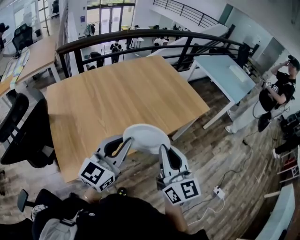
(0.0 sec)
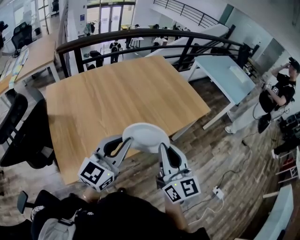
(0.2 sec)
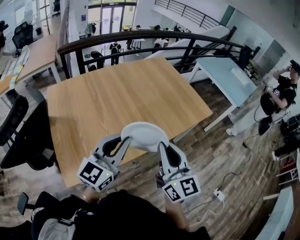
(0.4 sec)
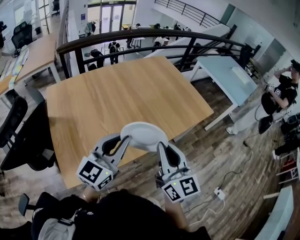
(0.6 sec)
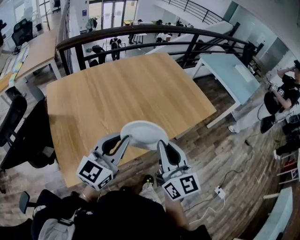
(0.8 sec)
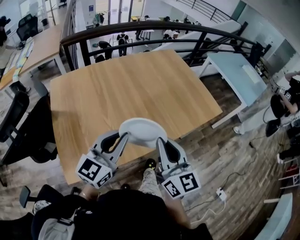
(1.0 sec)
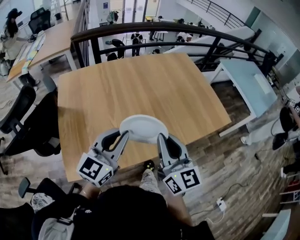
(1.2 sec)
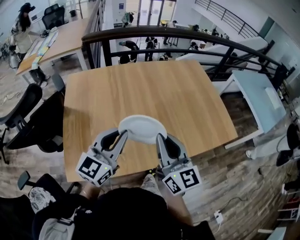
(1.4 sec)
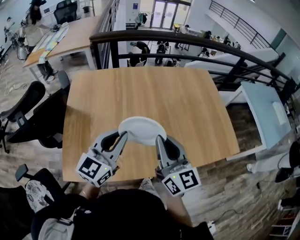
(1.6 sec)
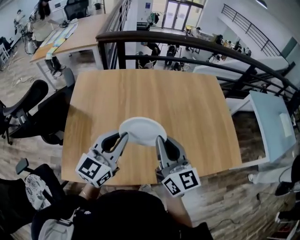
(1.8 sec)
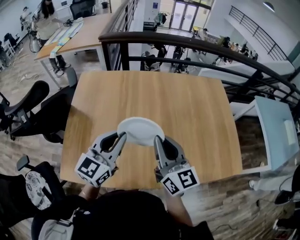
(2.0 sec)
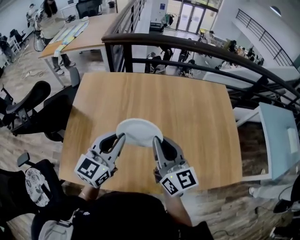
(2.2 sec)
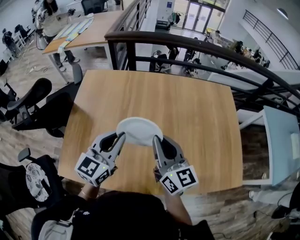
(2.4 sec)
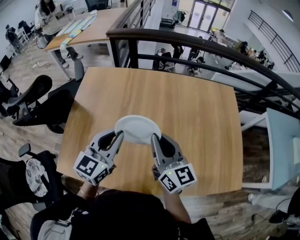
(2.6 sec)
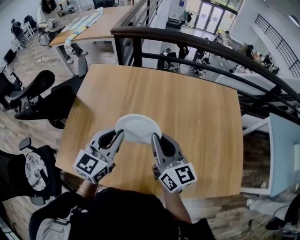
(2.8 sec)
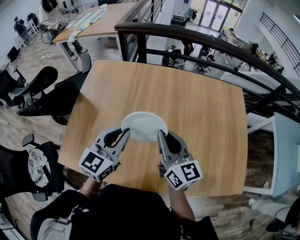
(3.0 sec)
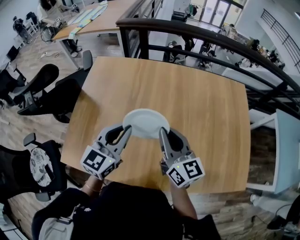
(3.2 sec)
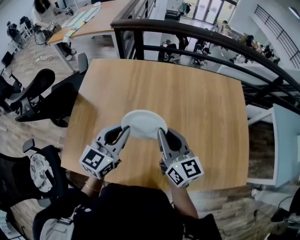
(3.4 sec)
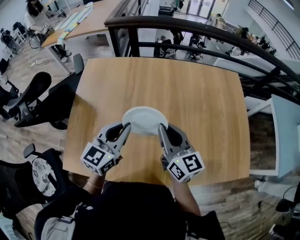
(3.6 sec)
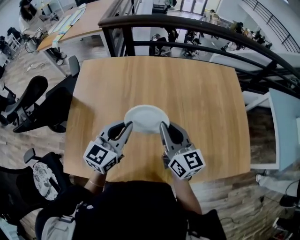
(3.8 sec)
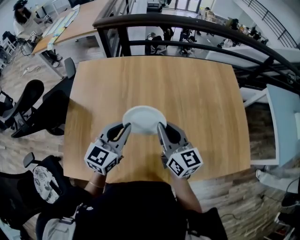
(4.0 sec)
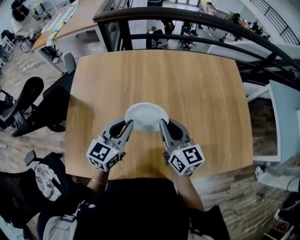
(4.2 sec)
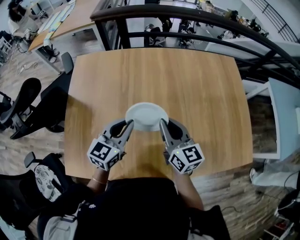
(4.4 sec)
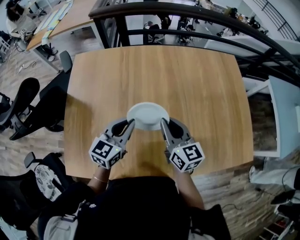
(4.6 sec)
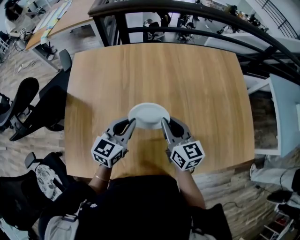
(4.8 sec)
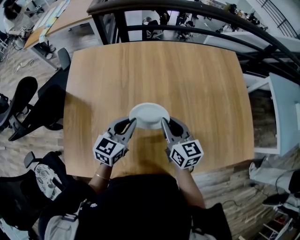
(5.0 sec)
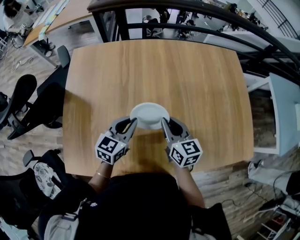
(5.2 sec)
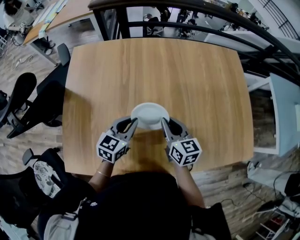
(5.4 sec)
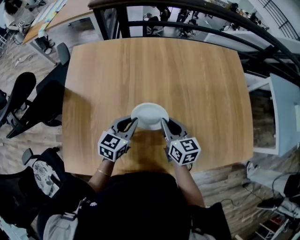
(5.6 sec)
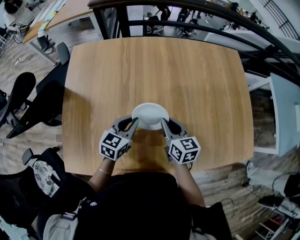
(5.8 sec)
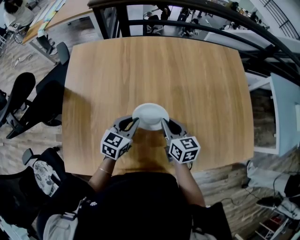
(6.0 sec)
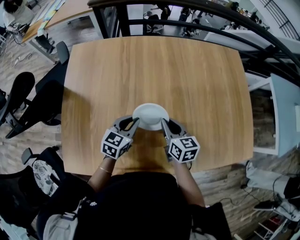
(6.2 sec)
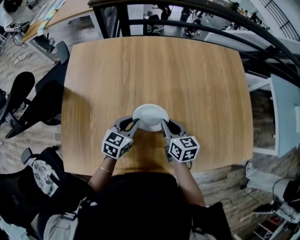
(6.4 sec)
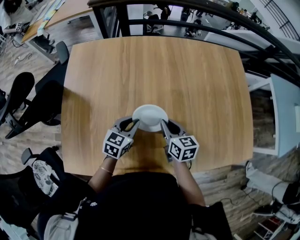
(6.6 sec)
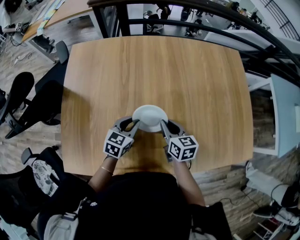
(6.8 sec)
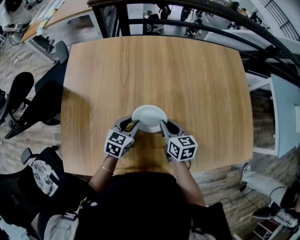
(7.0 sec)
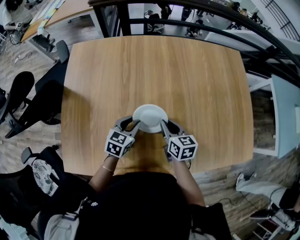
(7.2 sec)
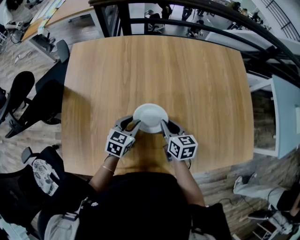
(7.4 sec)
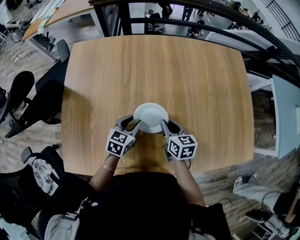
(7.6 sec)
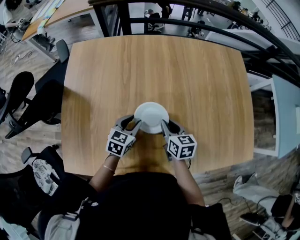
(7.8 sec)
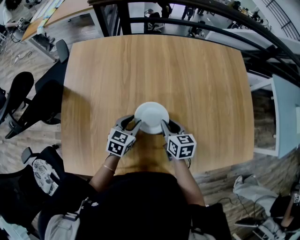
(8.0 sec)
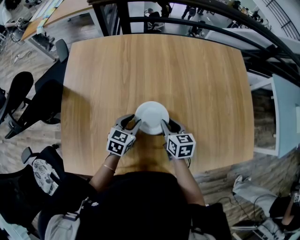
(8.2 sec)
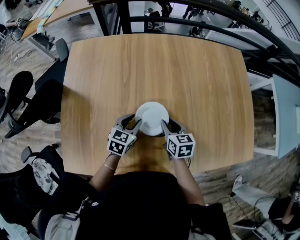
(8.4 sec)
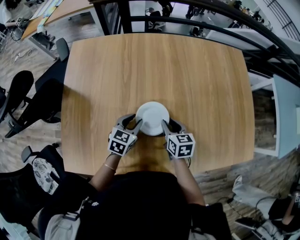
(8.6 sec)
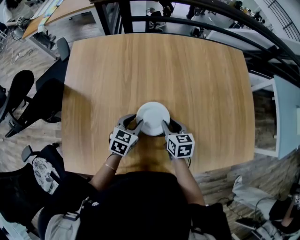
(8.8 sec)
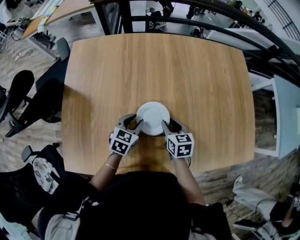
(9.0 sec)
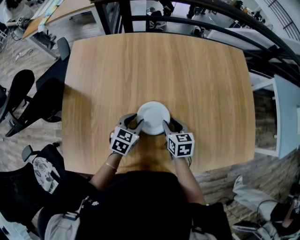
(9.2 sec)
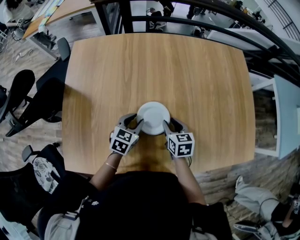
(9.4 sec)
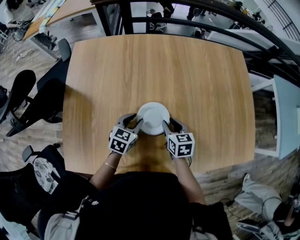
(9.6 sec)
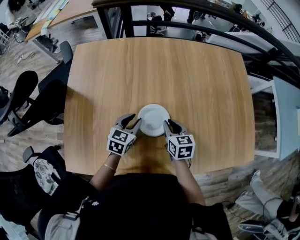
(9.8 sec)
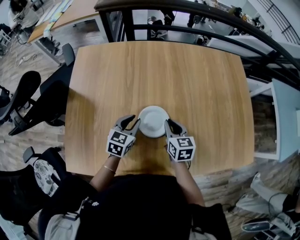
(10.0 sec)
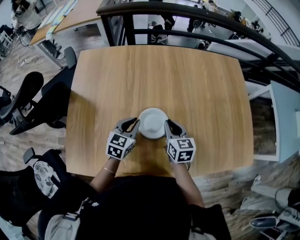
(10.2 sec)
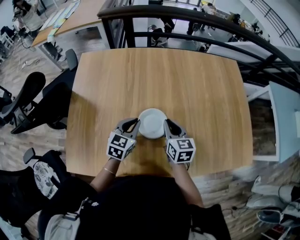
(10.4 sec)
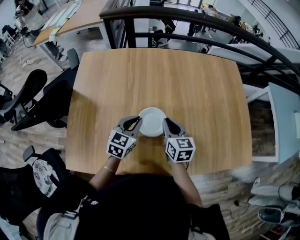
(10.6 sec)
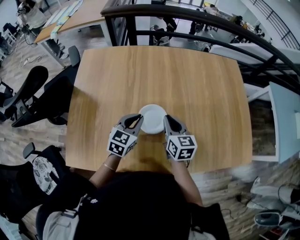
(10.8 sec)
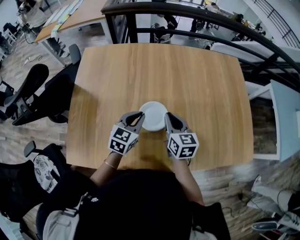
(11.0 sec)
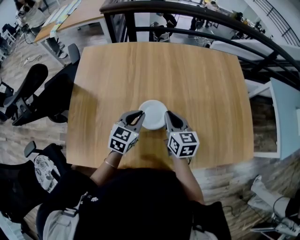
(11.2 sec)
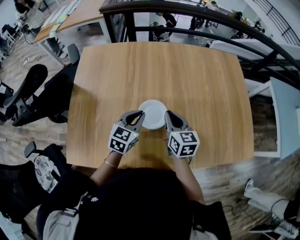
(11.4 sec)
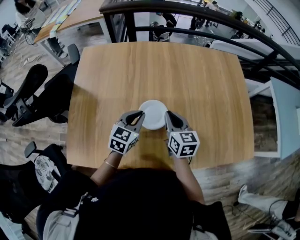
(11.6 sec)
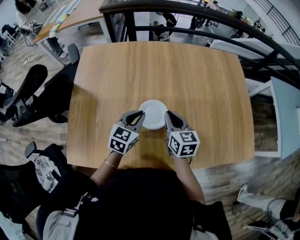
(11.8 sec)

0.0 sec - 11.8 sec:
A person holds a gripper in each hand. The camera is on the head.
0.0 sec - 1.4 sec: The two grippers go about 20 cm forward and to the left. The right gripper changes its angle by some 20 degrees.
1.4 sec - 3.0 sec: Both grippers move forward, about 20 cm. The right gripper rotates approximately 30 degrees, while the left gripper turns by about 20 degrees.
3.0 sec - 4.4 sec: The grippers both shift downward by roughly 10 cm.
4.4 sec - 6.0 sec: Both grippers move downward, about 10 cm.
6.0 sec - 7.4 sec: The grippers make only small movements.
7.4 sec - 8.8 sec: The grippers move only a little.
8.8 sec - 10.4 sec: The two grippers go roughly 10 cm upward. The left gripper closes up.
10.4 sec - 11.8 sec: The grippers move only a little.

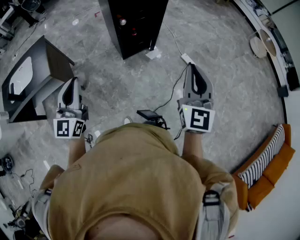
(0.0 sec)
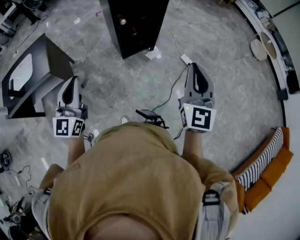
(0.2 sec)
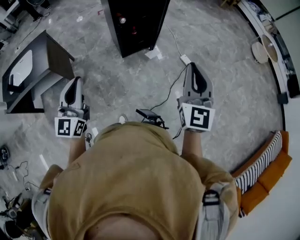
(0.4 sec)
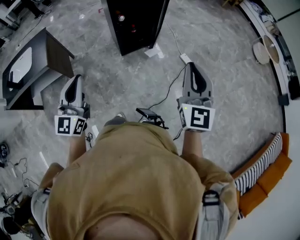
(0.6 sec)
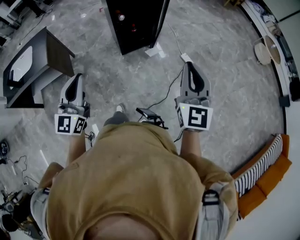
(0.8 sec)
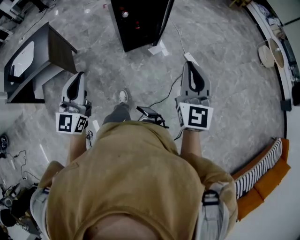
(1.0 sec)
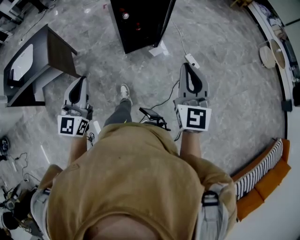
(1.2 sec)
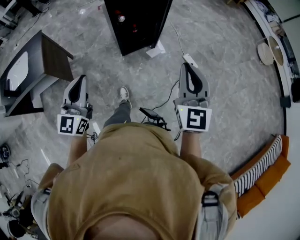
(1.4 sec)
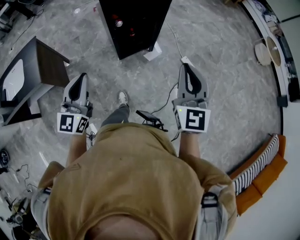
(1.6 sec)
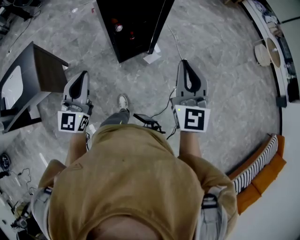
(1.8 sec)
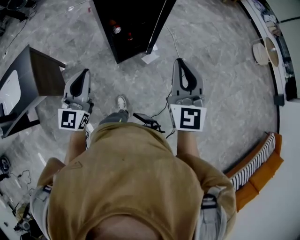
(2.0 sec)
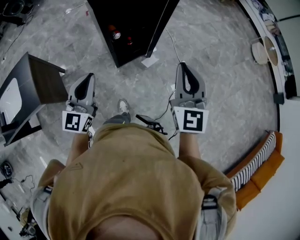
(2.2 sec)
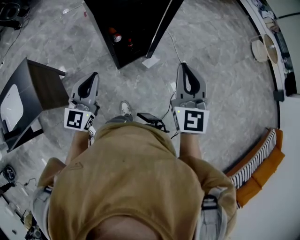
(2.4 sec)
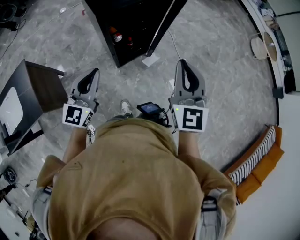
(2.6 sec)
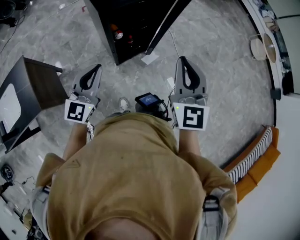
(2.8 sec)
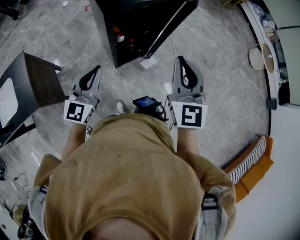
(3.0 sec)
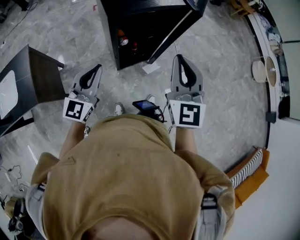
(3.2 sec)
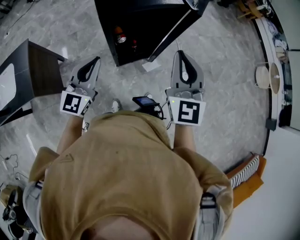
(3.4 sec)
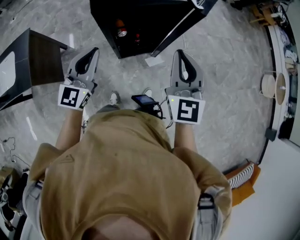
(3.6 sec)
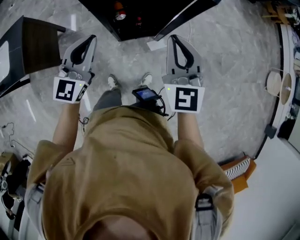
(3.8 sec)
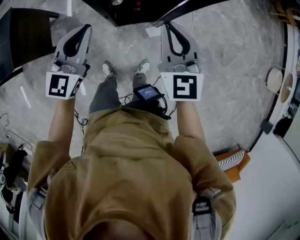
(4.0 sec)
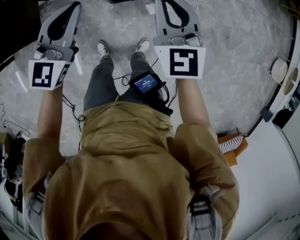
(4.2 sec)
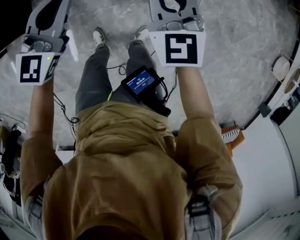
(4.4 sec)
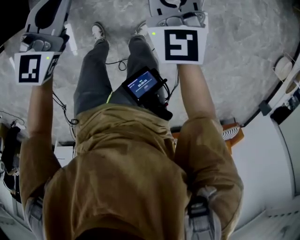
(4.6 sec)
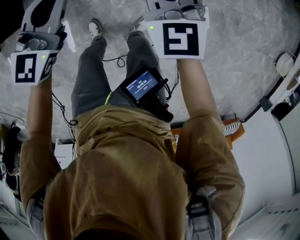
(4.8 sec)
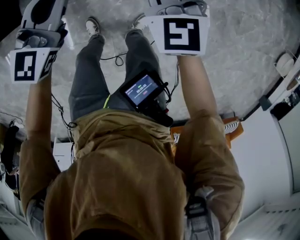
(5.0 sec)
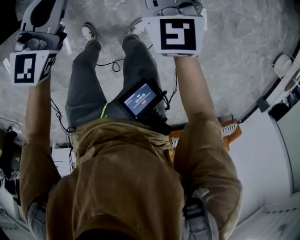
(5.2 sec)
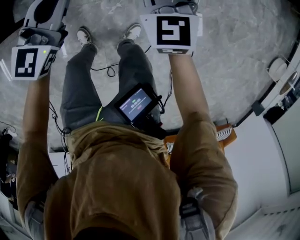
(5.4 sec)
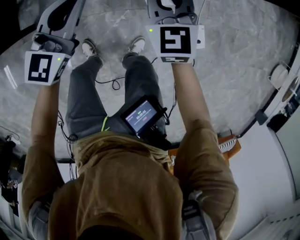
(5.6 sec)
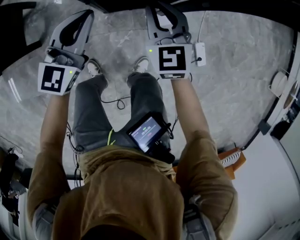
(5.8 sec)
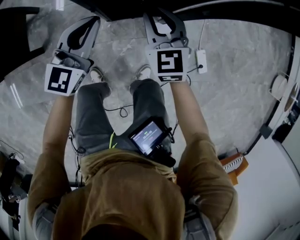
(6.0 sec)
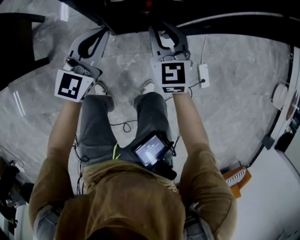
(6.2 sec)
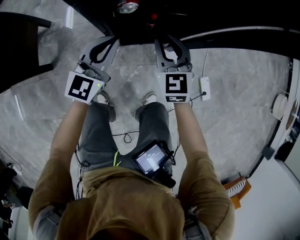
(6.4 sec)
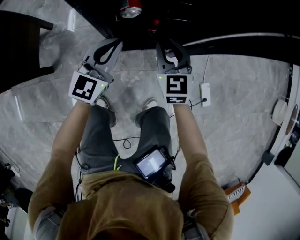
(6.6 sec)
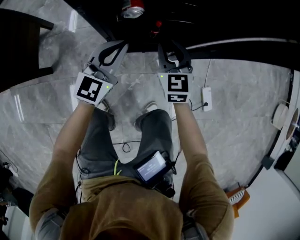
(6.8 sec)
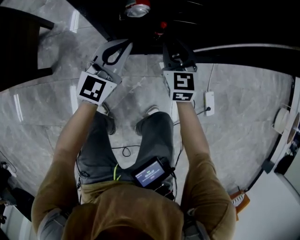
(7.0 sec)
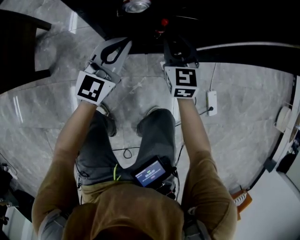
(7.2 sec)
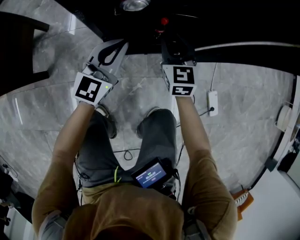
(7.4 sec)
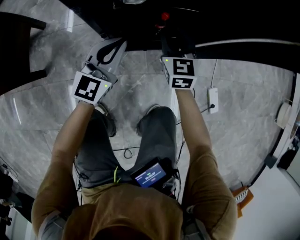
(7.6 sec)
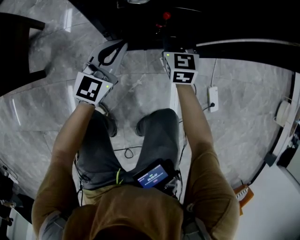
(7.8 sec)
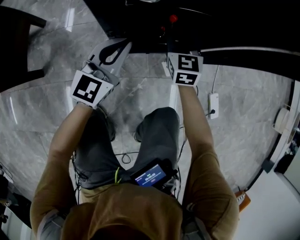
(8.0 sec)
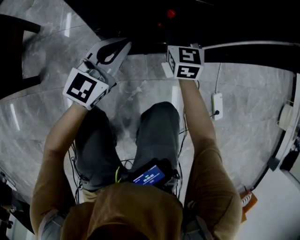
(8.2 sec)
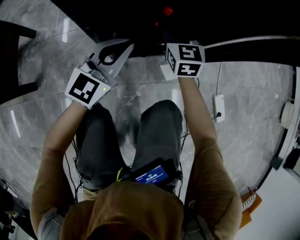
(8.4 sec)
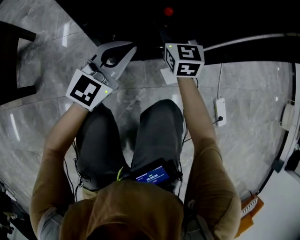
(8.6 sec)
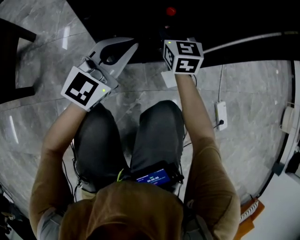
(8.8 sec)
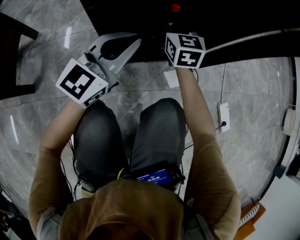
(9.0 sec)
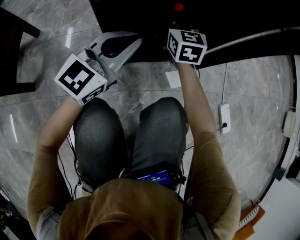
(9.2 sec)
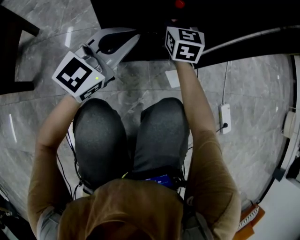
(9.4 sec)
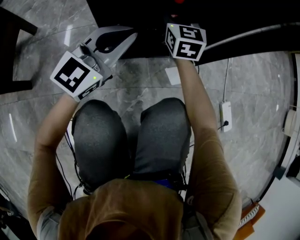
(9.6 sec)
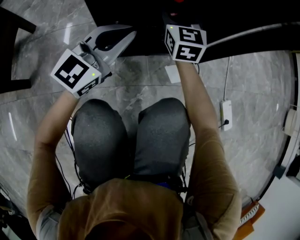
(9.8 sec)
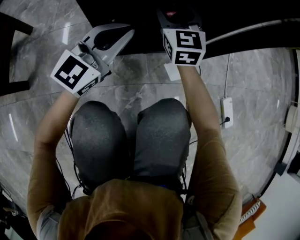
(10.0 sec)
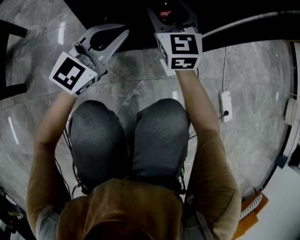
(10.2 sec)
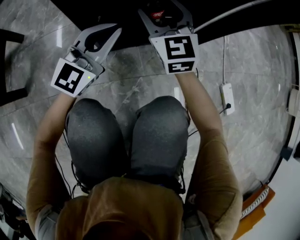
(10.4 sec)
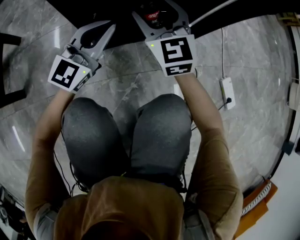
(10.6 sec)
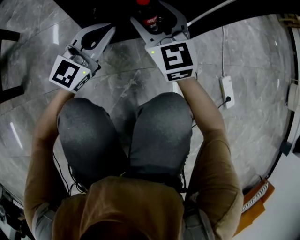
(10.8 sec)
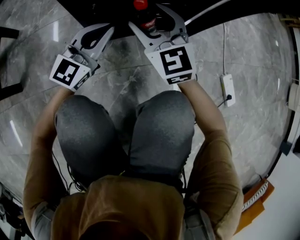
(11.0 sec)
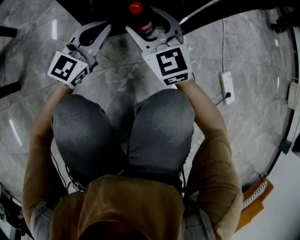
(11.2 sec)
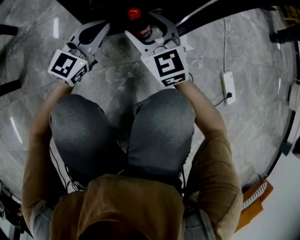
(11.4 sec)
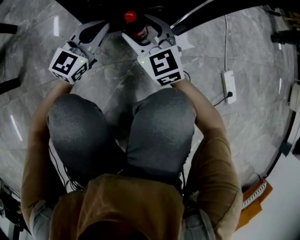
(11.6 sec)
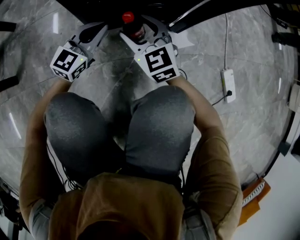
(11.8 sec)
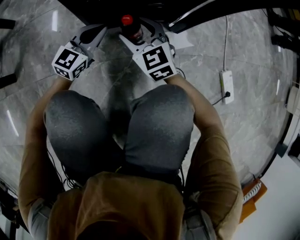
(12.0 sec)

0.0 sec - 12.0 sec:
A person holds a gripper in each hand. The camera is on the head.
0.0 sec - 1.6 sec: The left gripper moves forward and to the right, about 15 cm. The right gripper shifts about 15 cm forward.
1.6 sec - 3.0 sec: The right gripper shifts roughly 25 cm forward and to the left; the left gripper moves forward, approximately 25 cm.
3.0 sec - 4.4 sec: The right gripper heads downward and to the left, covering roughly 35 cm, and swivels approximately 40 degrees. The left gripper moves downward, roughly 15 cm.
4.4 sec - 6.0 sec: Both grippers move downward, about 15 cm.
6.0 sec - 7.6 sec: The left gripper moves downward, some 20 cm; the right gripper heads downward and forward, covering some 20 cm.
7.6 sec - 9.0 sec: The left gripper heads downward, covering some 10 cm. Meanwhile the right gripper shifts about 15 cm downward and forward, and opens its fingers.
9.0 sec - 10.4 sec: The left gripper travels downward by approximately 5 cm. Meanwhile the right gripper travels backward by roughly 5 cm.
10.4 sec - 12.0 sec: The right gripper moves downward and backward, some 20 cm, and swivels about 20 degrees; the left gripper goes some 20 cm downward, and turns by approximately 20 degrees.
